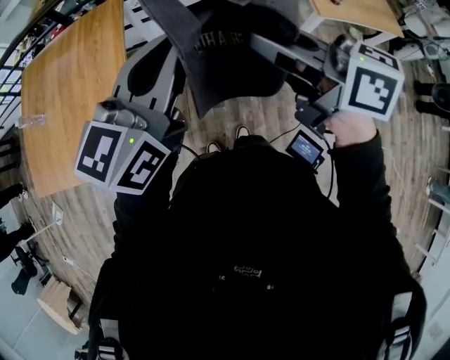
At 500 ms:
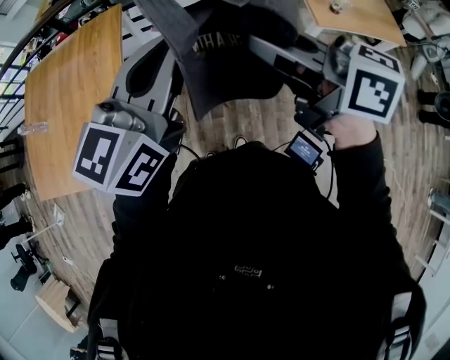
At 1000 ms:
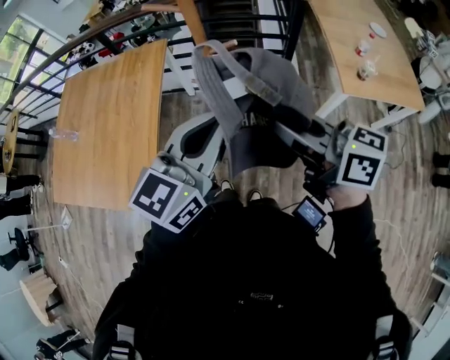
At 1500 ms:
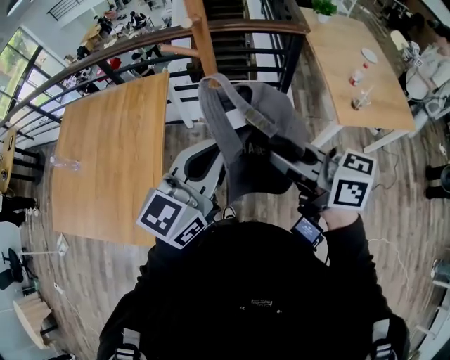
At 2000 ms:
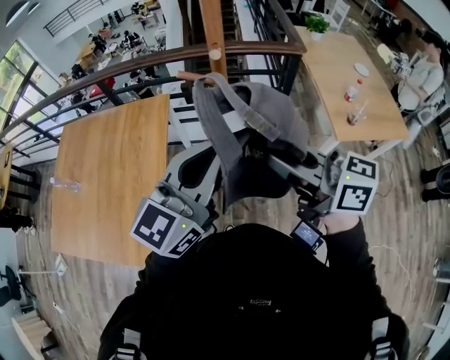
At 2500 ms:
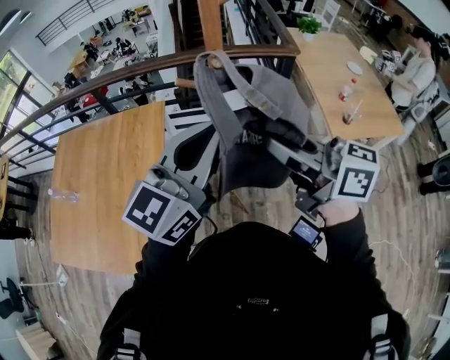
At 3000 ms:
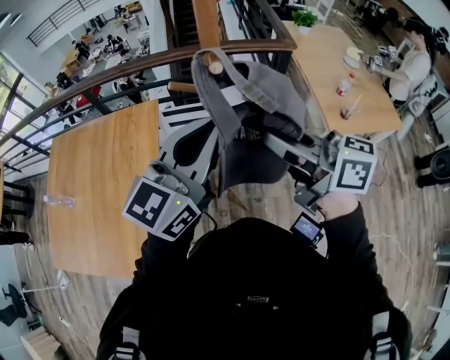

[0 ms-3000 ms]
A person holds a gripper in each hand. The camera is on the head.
0 ms to 1500 ms: Both grippers move forward, about 5 cm.
1500 ms to 3000 ms: The two grippers go roughly 10 cm upward and forward.

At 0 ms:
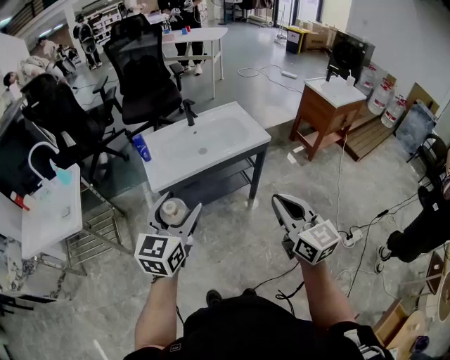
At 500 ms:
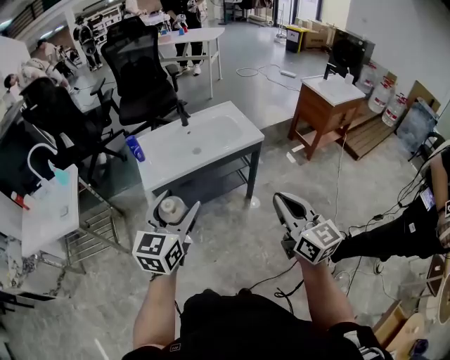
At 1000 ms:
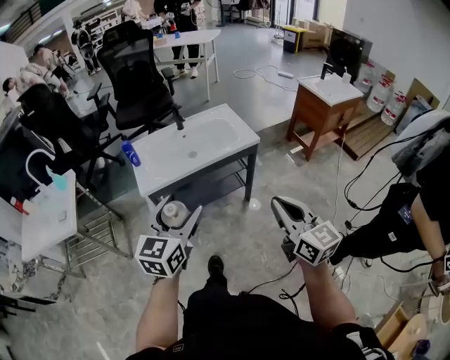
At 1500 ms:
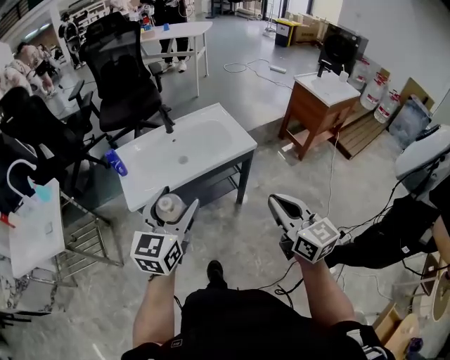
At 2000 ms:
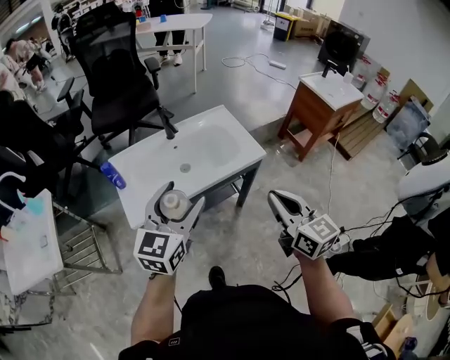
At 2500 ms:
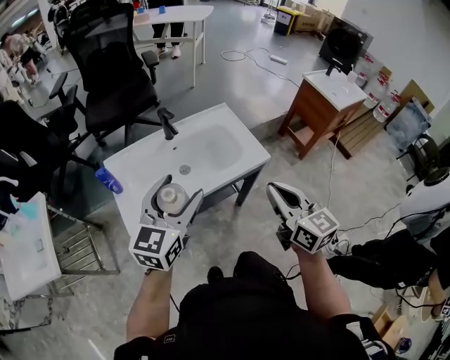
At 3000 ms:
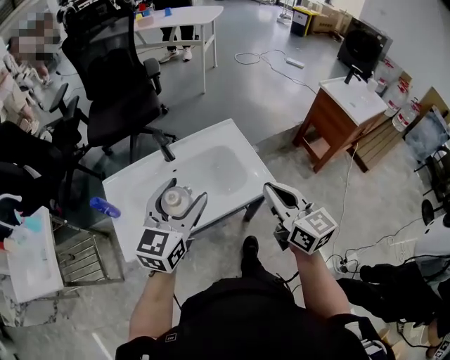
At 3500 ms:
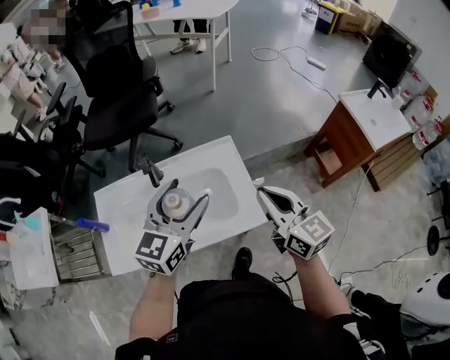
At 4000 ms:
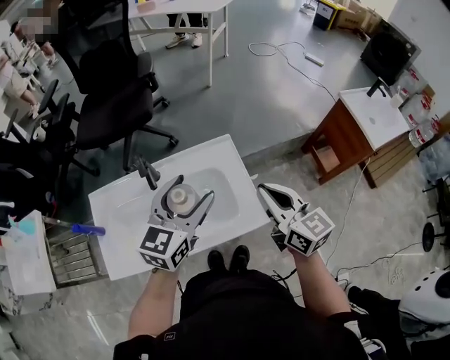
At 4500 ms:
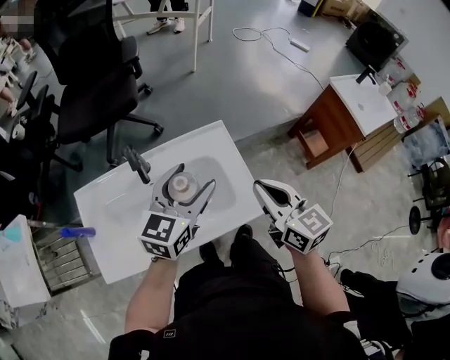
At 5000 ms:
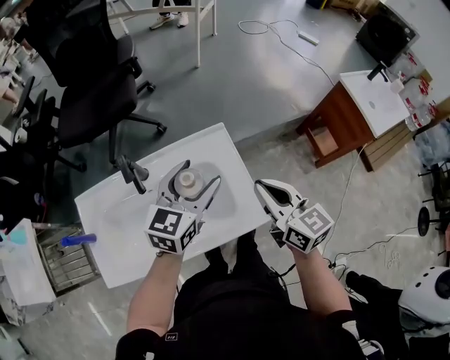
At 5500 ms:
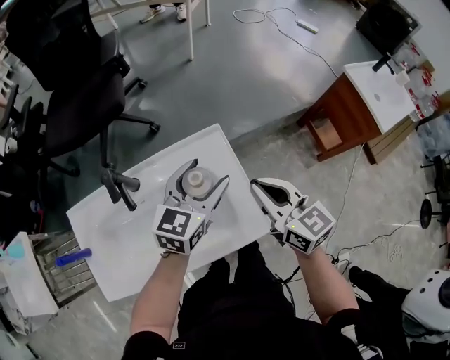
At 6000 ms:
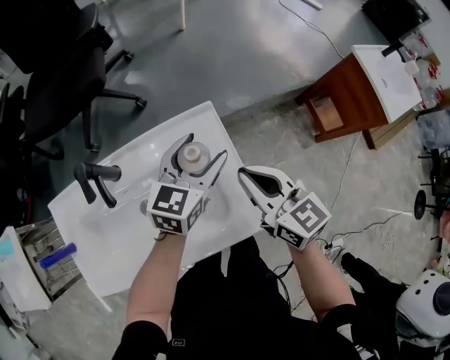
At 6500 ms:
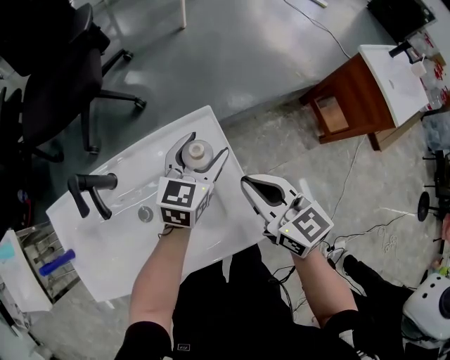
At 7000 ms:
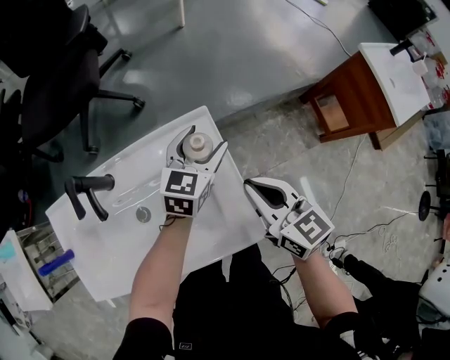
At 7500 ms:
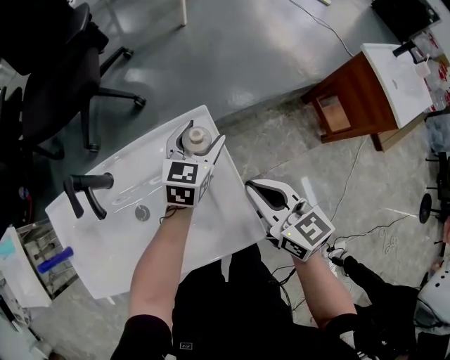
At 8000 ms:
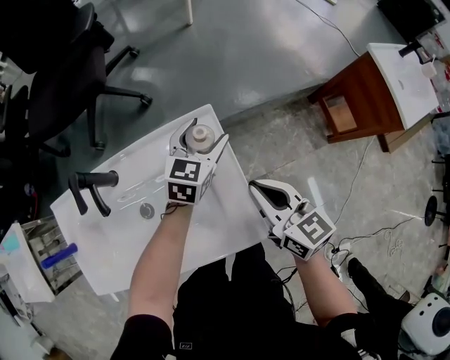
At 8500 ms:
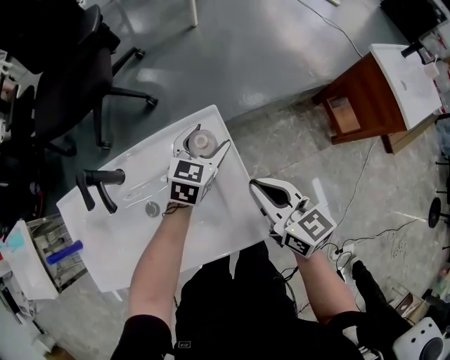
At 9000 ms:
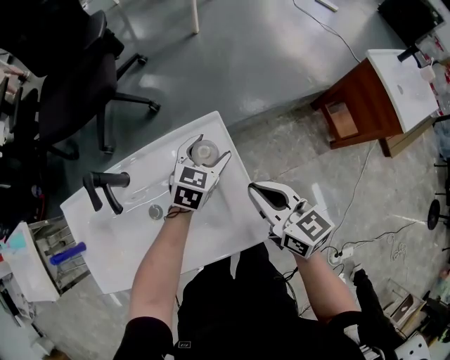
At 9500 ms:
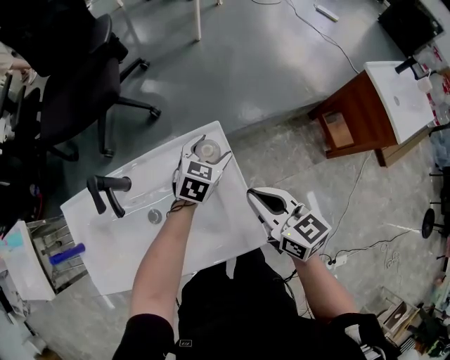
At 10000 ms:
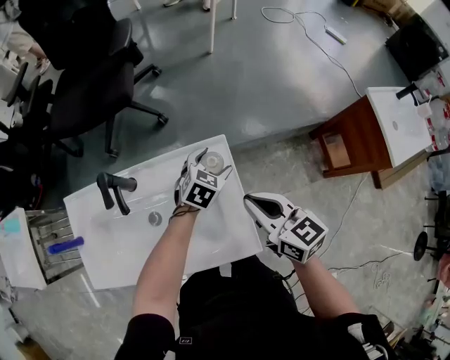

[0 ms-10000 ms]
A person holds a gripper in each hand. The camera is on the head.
0 ms to 2000 ms: Both grippers travel together forward, some 25 cm.
2000 ms to 4000 ms: The left gripper heads forward and to the right, covering about 40 cm; the right gripper moves forward, about 40 cm.
4000 ms to 6000 ms: The left gripper heads downward, forward and to the right, covering roughly 25 cm; the right gripper heads downward and forward, covering some 15 cm.
6000 ms to 8000 ms: The right gripper changes place by roughly 5 cm. Meanwhile the left gripper goes roughly 10 cm downward and forward.
8000 ms to 10000 ms: The right gripper goes approximately 5 cm upward.

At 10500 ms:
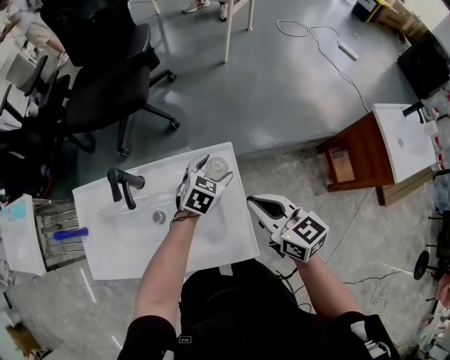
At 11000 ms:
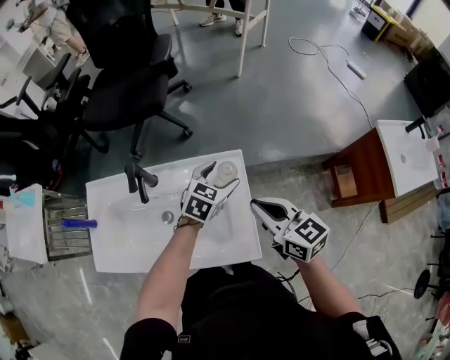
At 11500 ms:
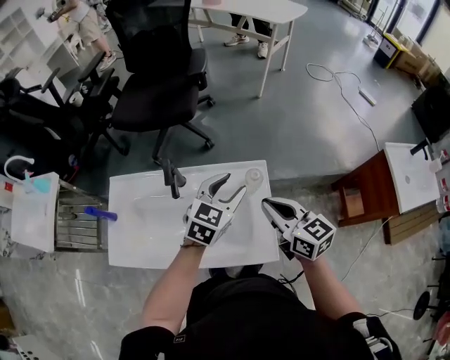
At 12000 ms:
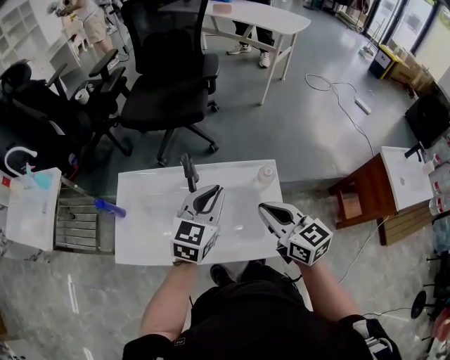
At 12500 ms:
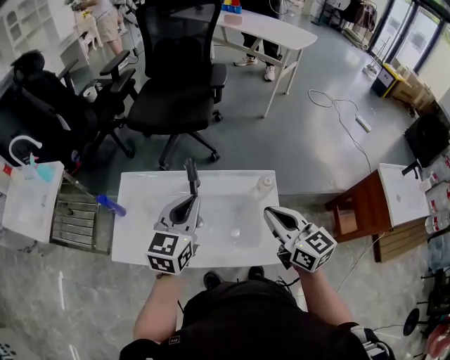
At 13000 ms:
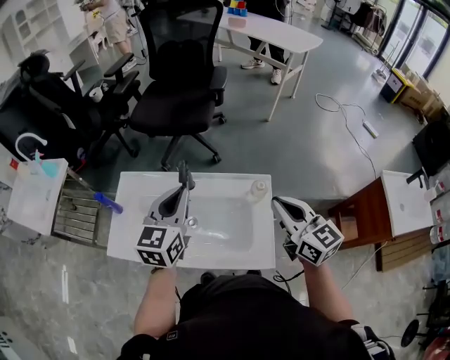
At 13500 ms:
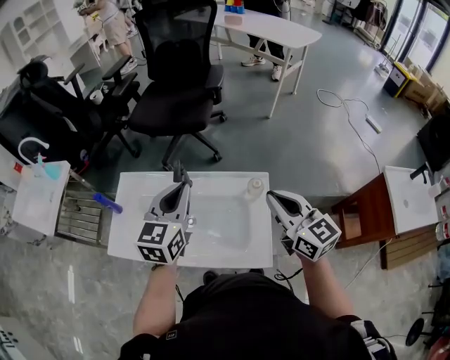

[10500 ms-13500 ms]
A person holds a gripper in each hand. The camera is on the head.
10500 ms to 12000 ms: The right gripper shifts about 15 cm to the left, upward and backward; the left gripper is displaced upward, to the left and backward by roughly 30 cm, rotates about 30 degrees, and closes its fingers.
12000 ms to 13500 ms: The right gripper shifts about 10 cm to the right and upward; the left gripper is displaced upward by about 5 cm.

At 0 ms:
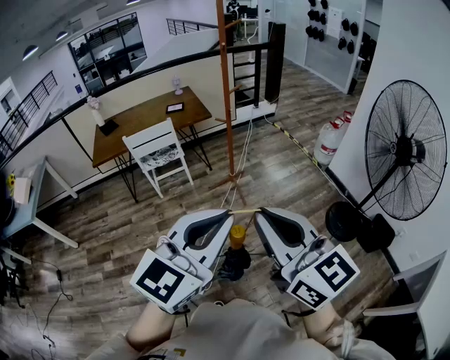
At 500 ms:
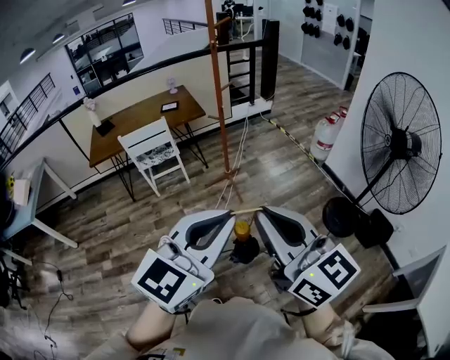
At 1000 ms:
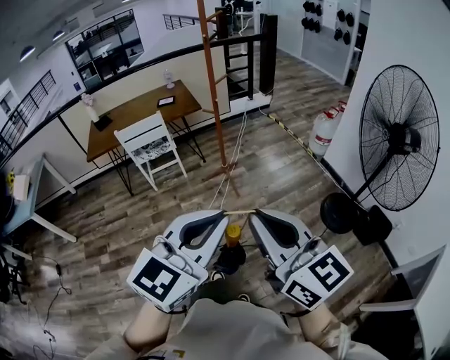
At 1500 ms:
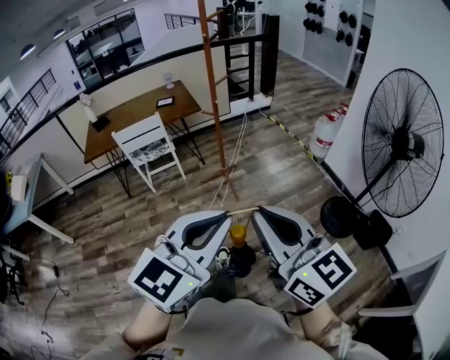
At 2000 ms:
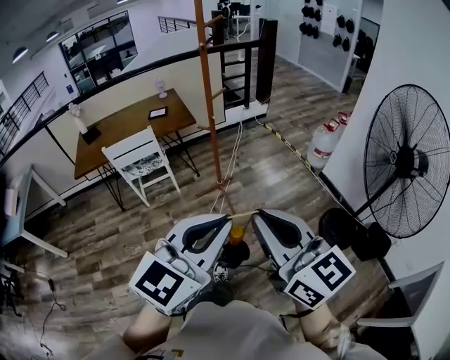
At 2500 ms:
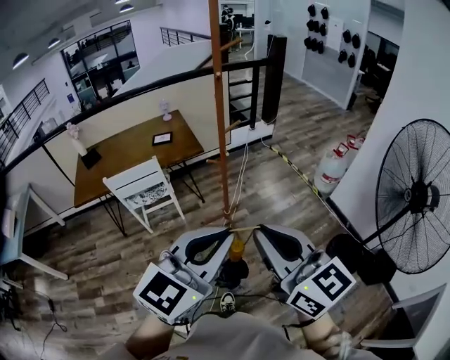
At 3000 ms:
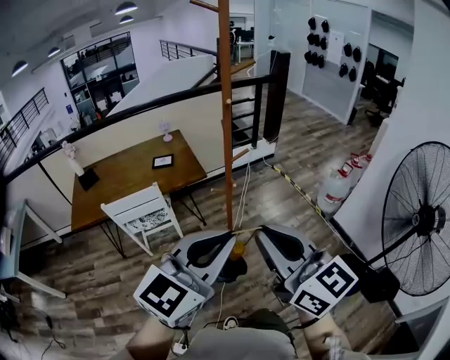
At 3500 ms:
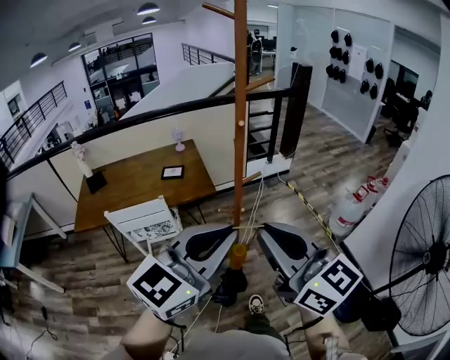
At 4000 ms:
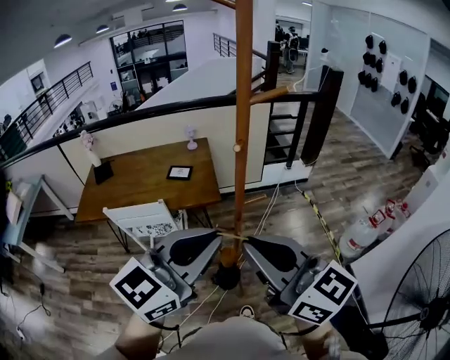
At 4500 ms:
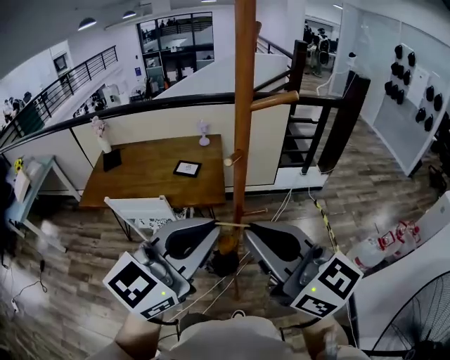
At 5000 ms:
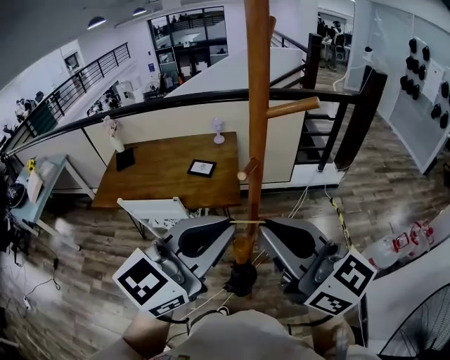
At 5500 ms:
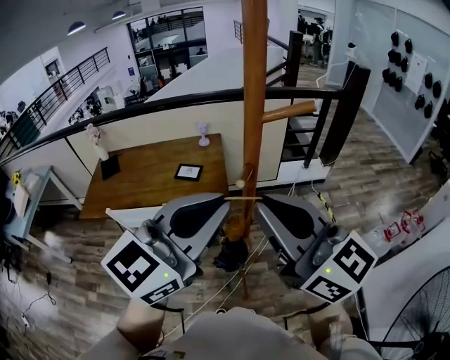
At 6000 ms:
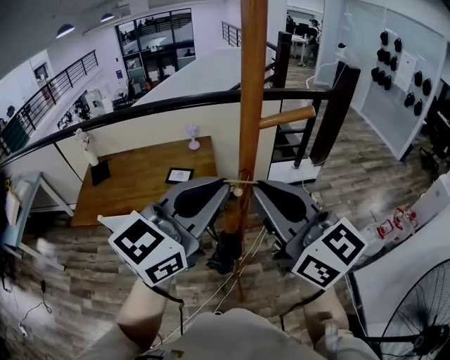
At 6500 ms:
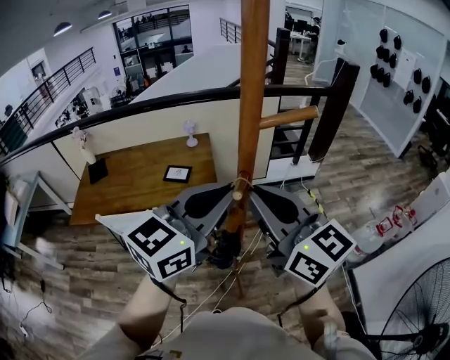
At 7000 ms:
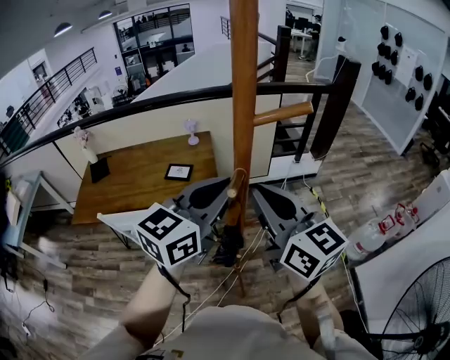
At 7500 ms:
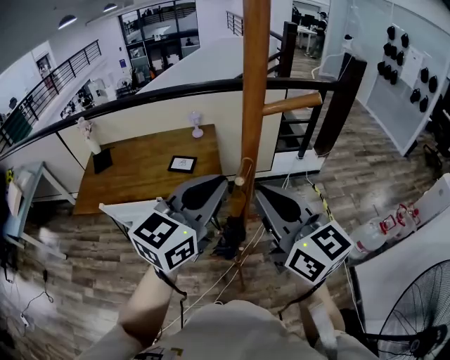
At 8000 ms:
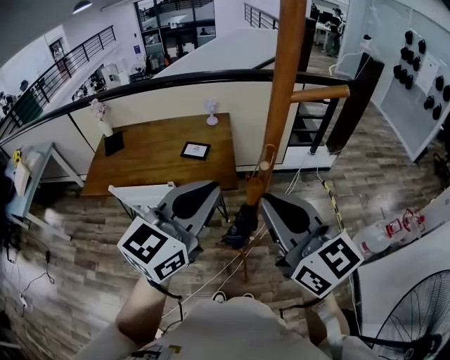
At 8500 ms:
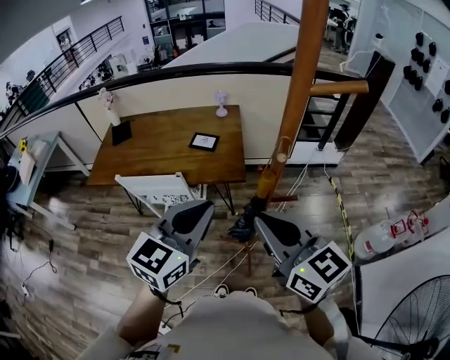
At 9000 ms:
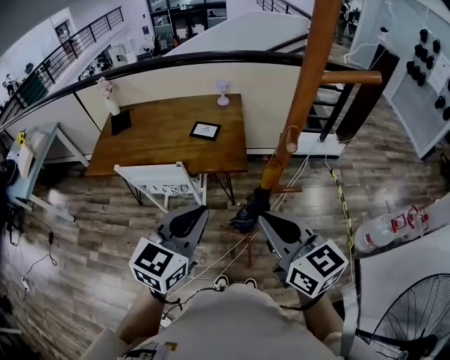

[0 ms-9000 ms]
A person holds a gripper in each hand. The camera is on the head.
0 ms to 2000 ms: The two grippers go some 15 cm forward and to the right.
2000 ms to 4500 ms: The two grippers travel together, about 60 cm. The right gripper turns by roughly 30 degrees; the left gripper swivels some 20 degrees.
4500 ms to 7000 ms: Both grippers move forward, some 15 cm.
7000 ms to 9000 ms: The right gripper goes about 15 cm downward, backward and to the left; the left gripper heads to the left, downward and backward, covering approximately 20 cm, and turns by some 20 degrees.

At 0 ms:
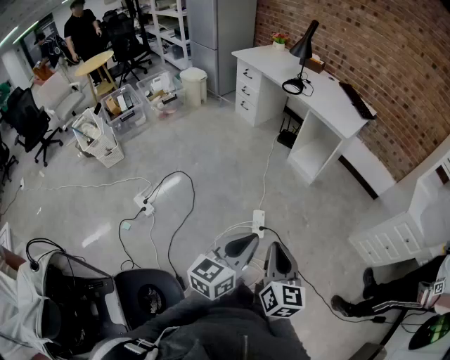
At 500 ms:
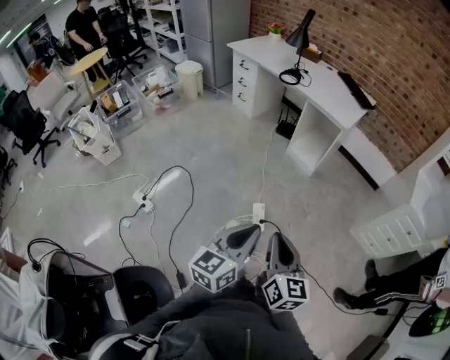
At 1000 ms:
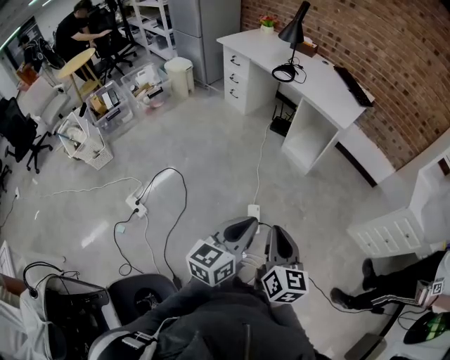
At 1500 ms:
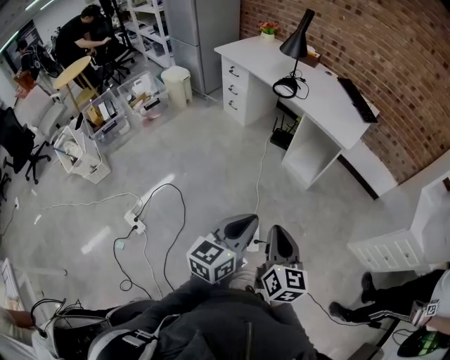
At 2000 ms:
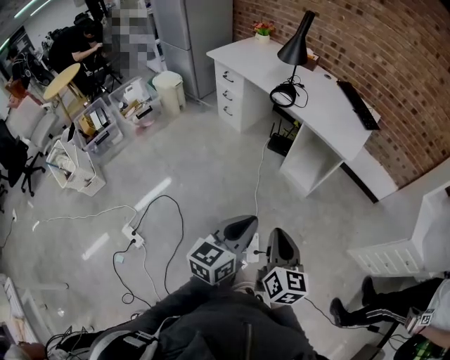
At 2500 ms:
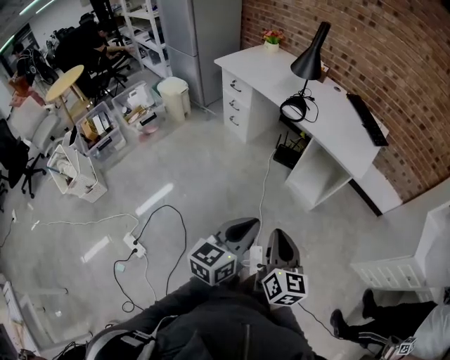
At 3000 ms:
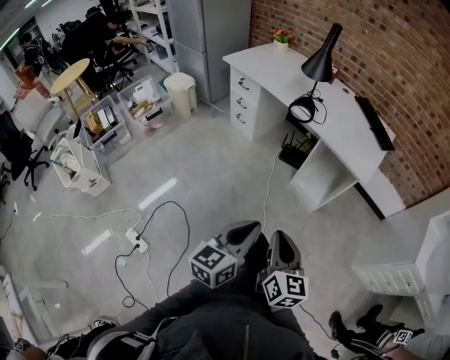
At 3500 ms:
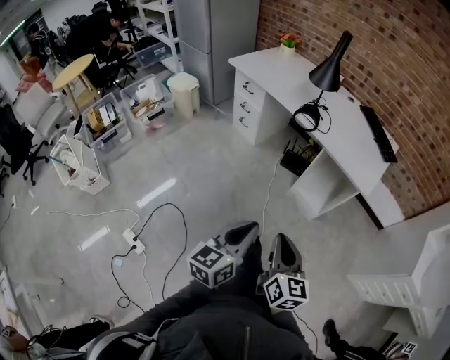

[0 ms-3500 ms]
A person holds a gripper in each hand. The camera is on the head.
0 ms to 2000 ms: The grippers both shift forward by approximately 30 cm.
2000 ms to 3500 ms: The right gripper shifts roughly 10 cm forward and to the left. The left gripper travels to the left and forward by some 10 cm.
